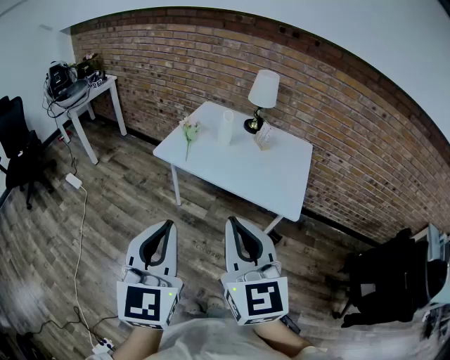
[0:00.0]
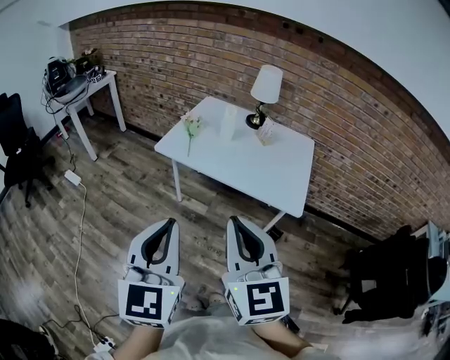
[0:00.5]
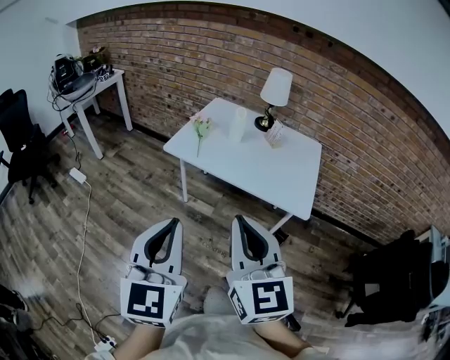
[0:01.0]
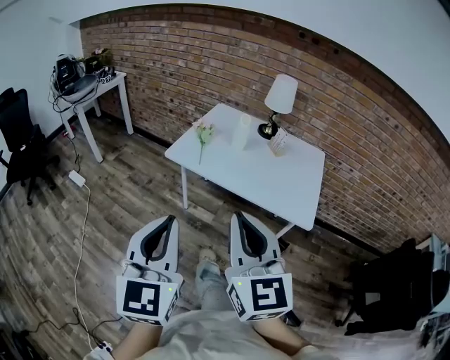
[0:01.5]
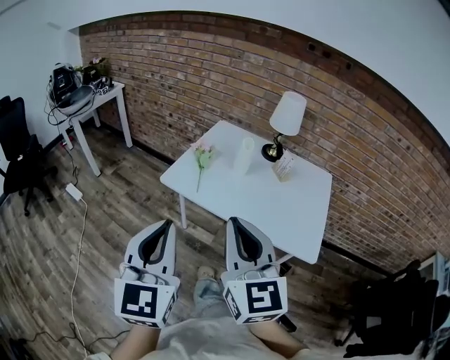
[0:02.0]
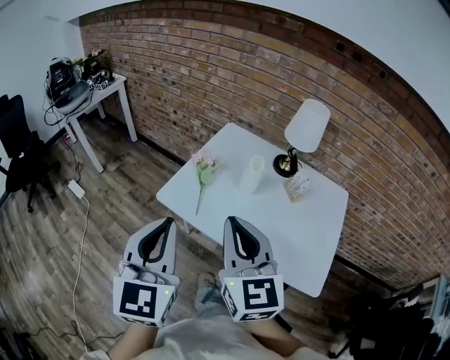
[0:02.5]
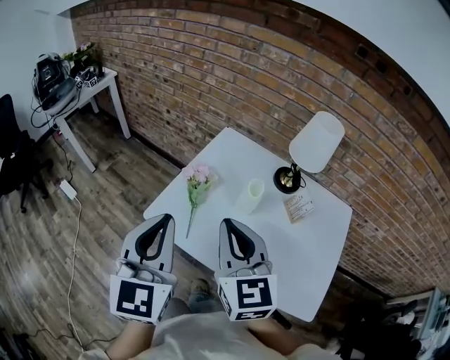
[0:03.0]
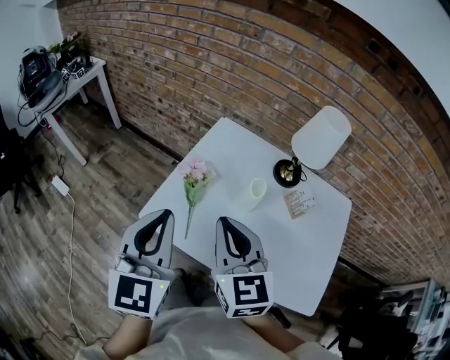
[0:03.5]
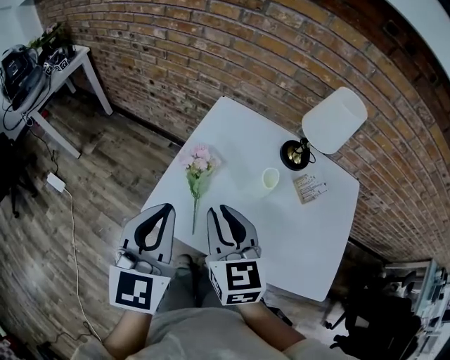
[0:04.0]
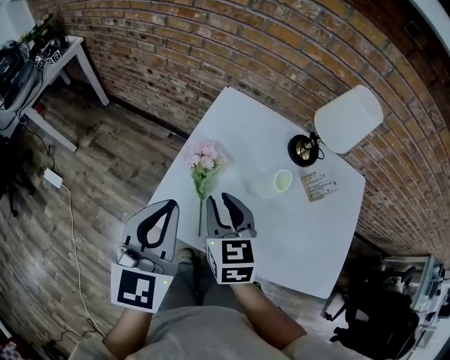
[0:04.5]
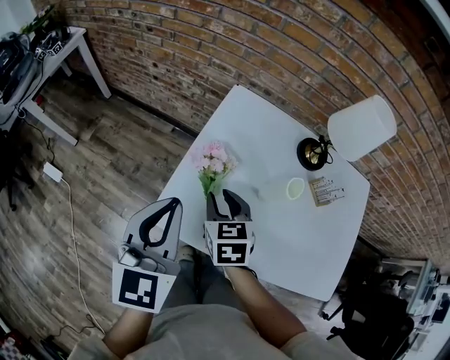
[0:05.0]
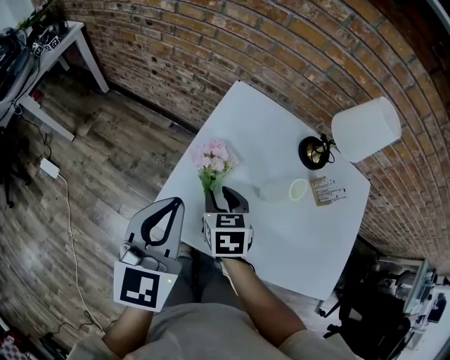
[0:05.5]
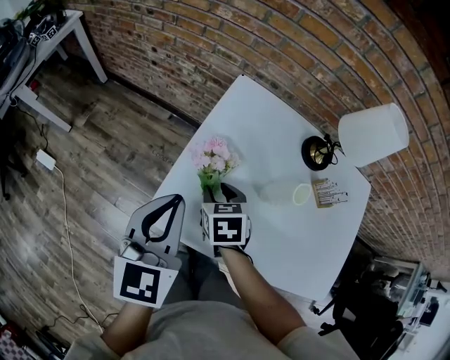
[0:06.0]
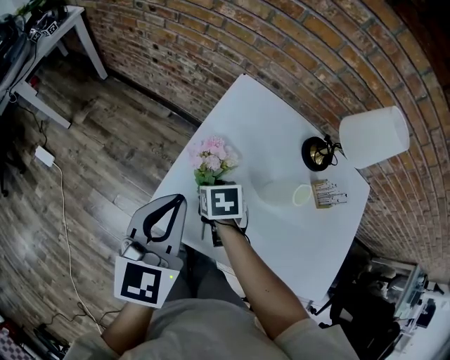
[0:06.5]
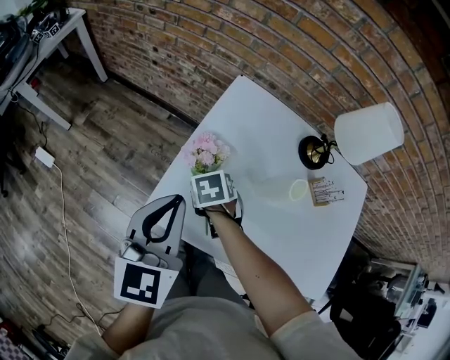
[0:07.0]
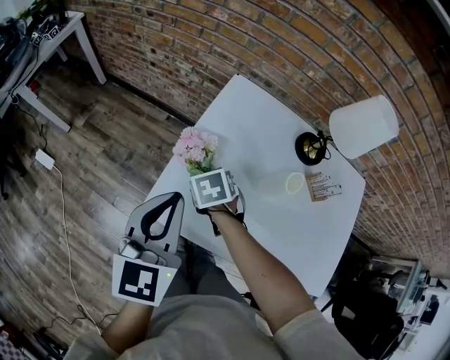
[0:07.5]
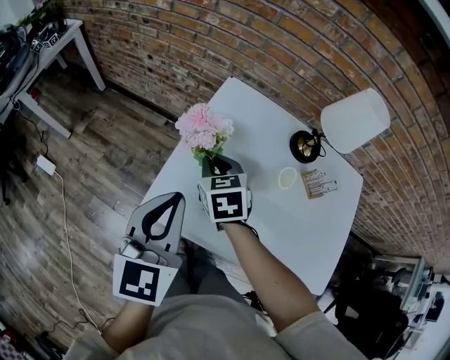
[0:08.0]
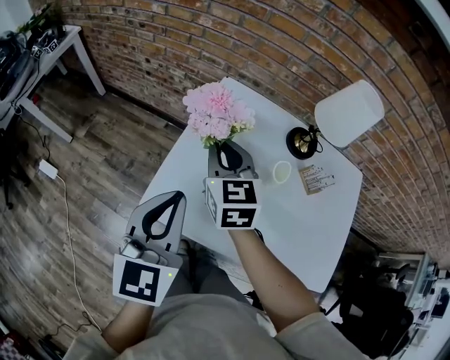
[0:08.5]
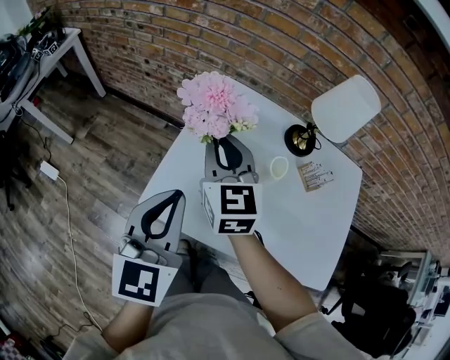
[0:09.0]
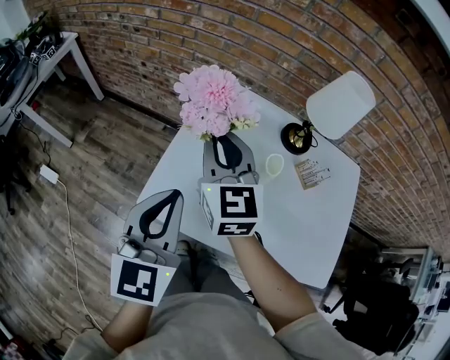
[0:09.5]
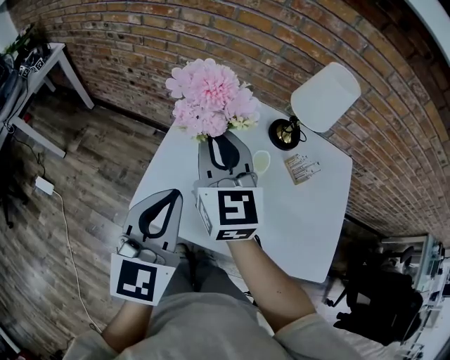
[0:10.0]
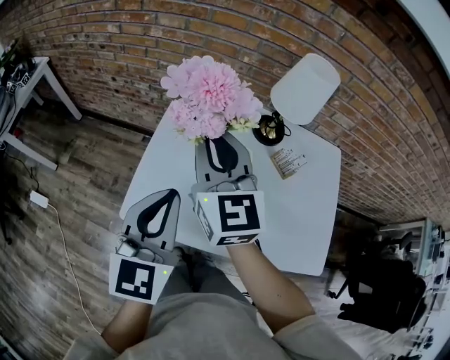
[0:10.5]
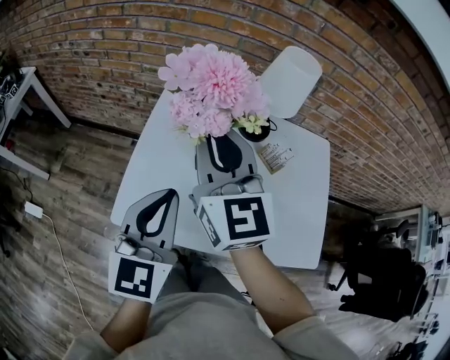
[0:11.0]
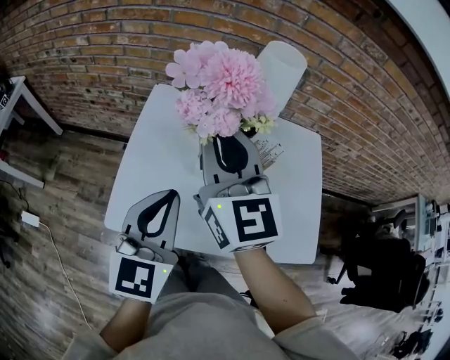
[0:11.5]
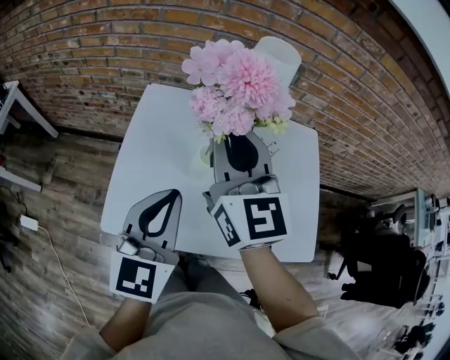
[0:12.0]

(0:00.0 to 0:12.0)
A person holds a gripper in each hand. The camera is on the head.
0:00.0 - 0:02.0: The grippers both shift forward by about 15 cm.
0:02.0 - 0:04.0: Both grippers travel together forward, approximately 35 cm. The right gripper changes its angle by approximately 20 degrees.
0:04.0 - 0:06.0: The left gripper is displaced forward and downward by some 10 cm, while the right gripper goes roughly 20 cm downward and forward, and tilts its fingers approximately 30 degrees downward.
0:06.0 - 0:08.0: The right gripper travels upward by roughly 5 cm, and closes its fingers; the left gripper ends up roughly 5 cm from where it was.
0:08.0 - 0:10.0: The right gripper goes approximately 20 cm upward, and points its fingers some 40 degrees further upward; the left gripper travels to the right by some 5 cm.
0:10.0 - 0:12.0: The left gripper heads to the right, covering about 10 cm. Meanwhile the right gripper shifts some 15 cm to the right and upward.

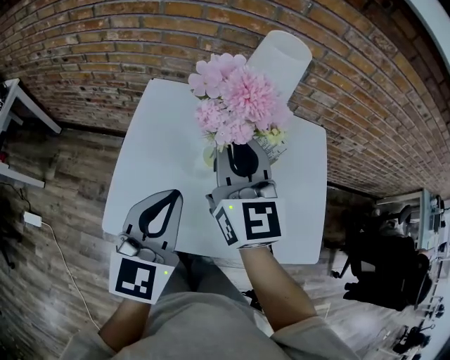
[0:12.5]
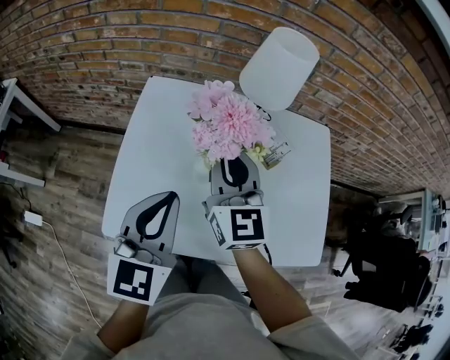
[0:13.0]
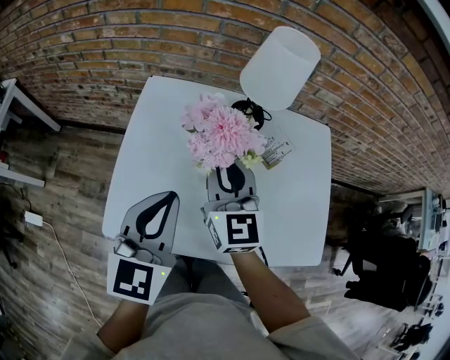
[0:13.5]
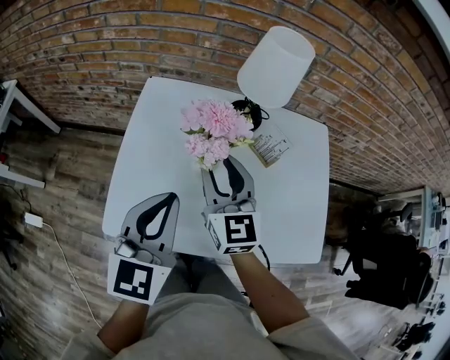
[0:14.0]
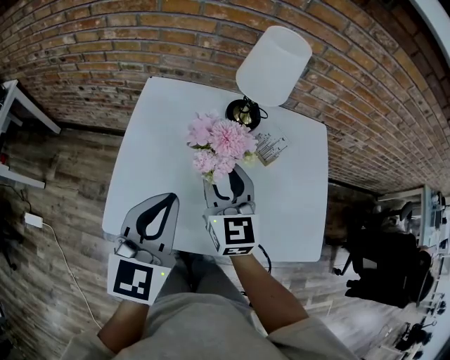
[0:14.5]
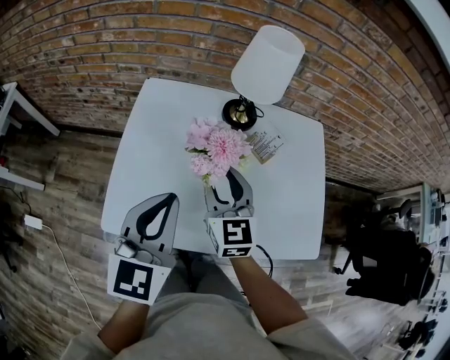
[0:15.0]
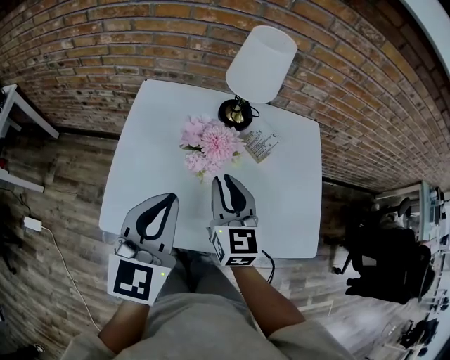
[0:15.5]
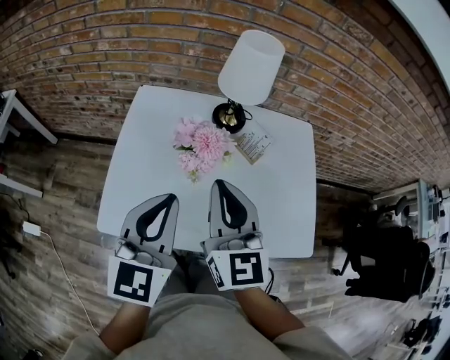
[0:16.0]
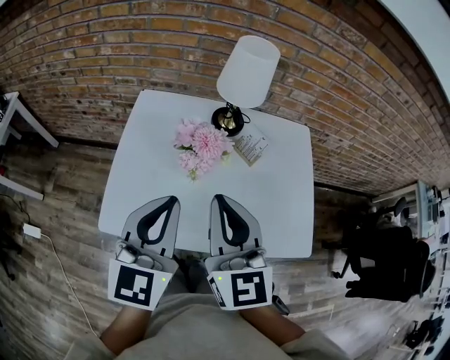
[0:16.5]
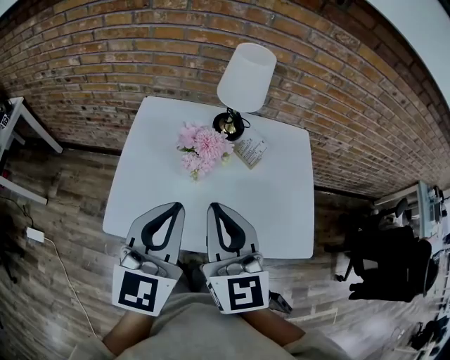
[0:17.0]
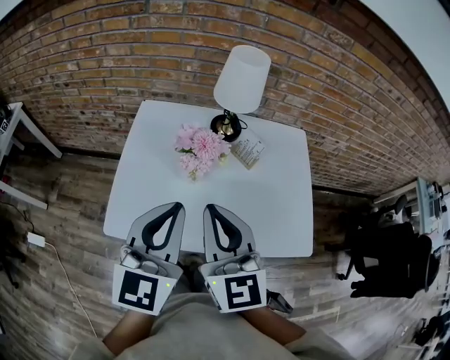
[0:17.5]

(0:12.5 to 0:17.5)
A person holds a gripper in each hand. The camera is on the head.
0:12.5 - 0:15.0: The right gripper shifts approximately 15 cm downward, and opens its fingers.
0:15.0 - 0:17.5: The left gripper goes roughly 10 cm upward and backward. Meanwhile the right gripper heads upward and backward, covering some 20 cm, and closes up.

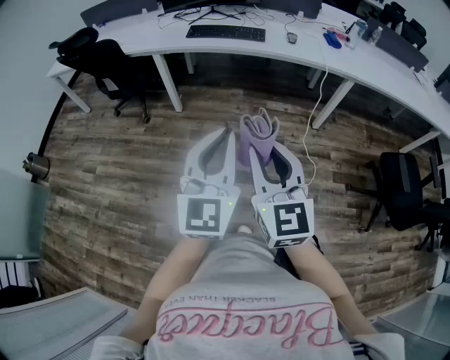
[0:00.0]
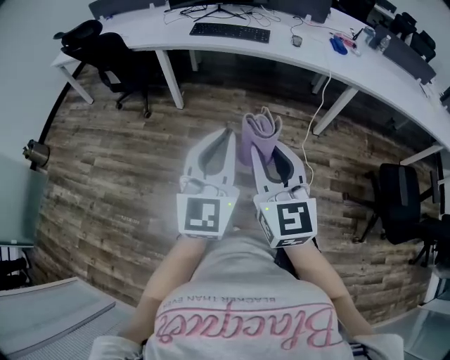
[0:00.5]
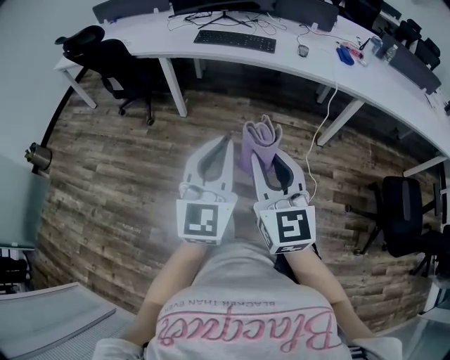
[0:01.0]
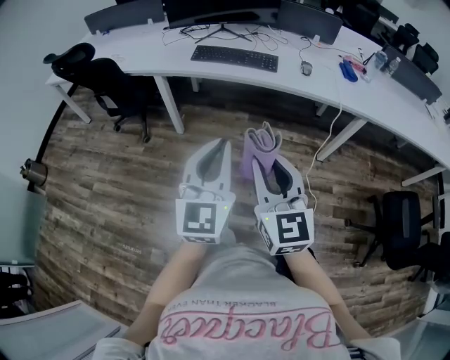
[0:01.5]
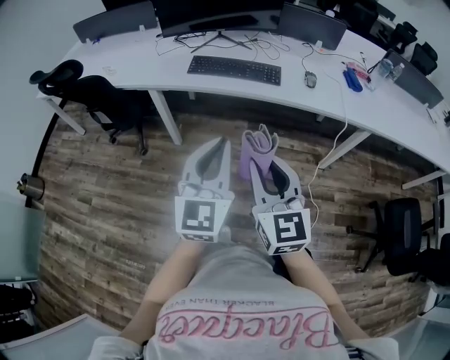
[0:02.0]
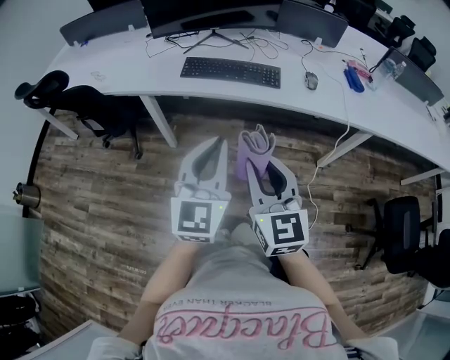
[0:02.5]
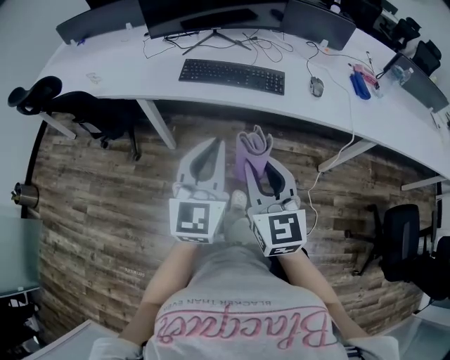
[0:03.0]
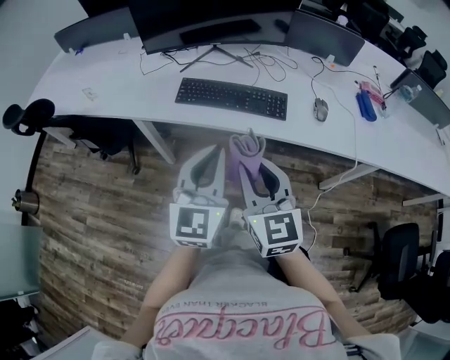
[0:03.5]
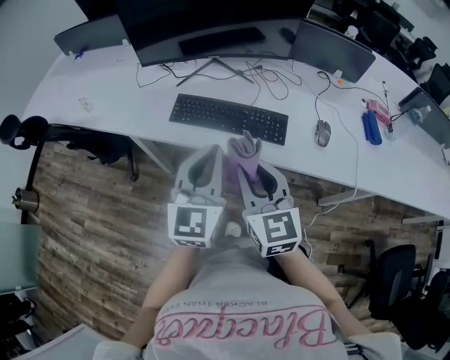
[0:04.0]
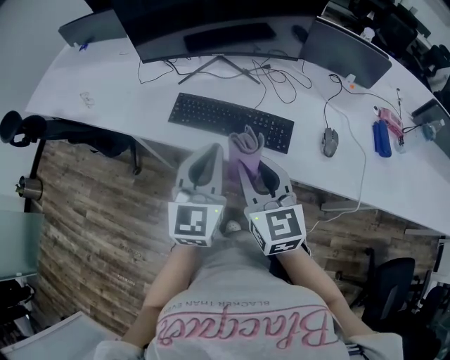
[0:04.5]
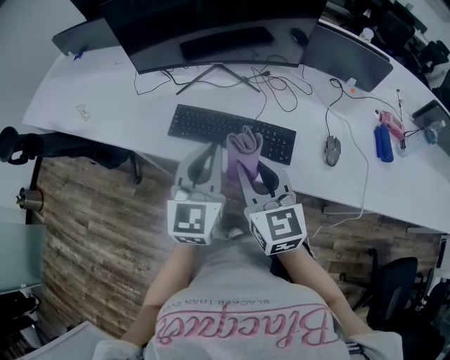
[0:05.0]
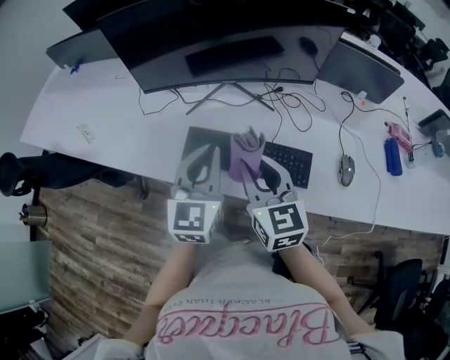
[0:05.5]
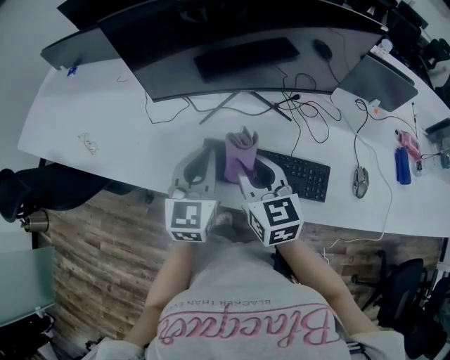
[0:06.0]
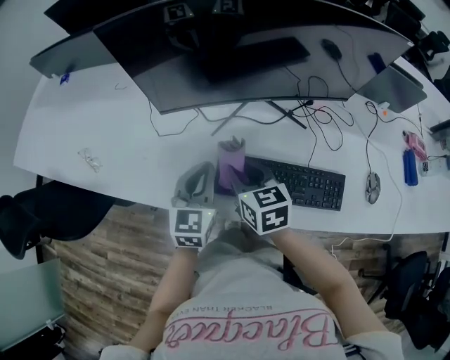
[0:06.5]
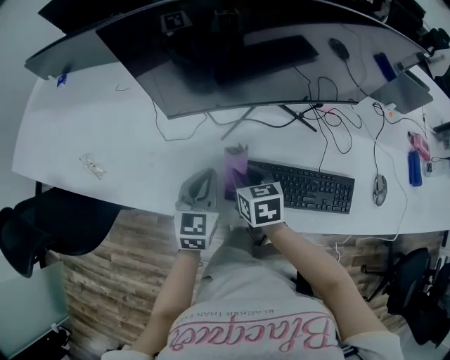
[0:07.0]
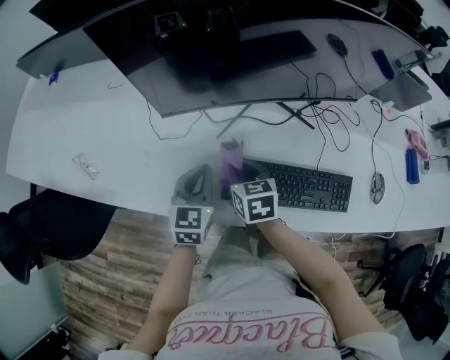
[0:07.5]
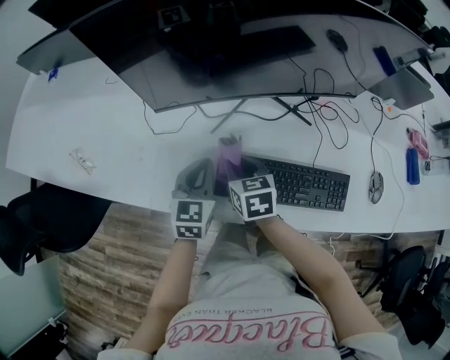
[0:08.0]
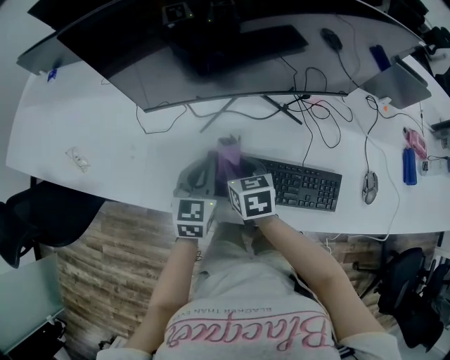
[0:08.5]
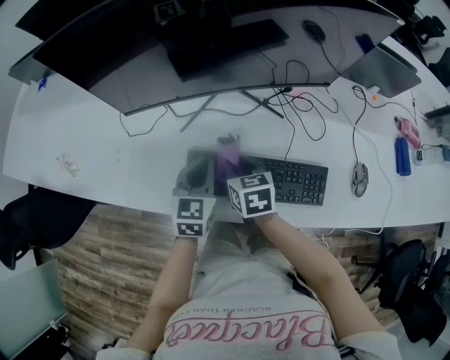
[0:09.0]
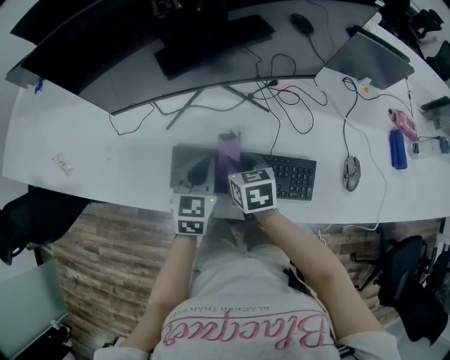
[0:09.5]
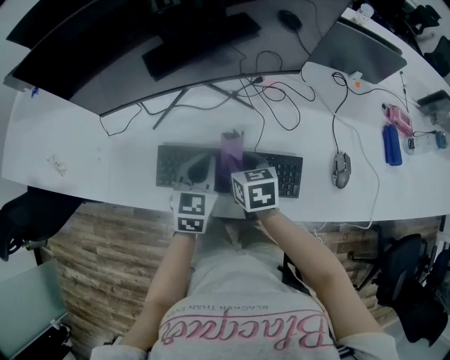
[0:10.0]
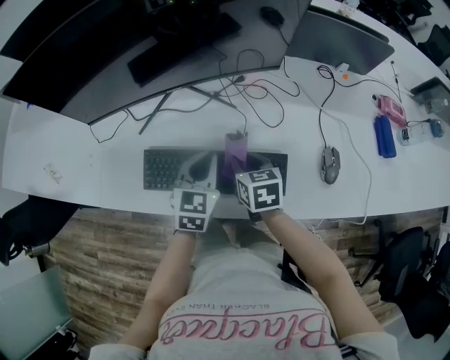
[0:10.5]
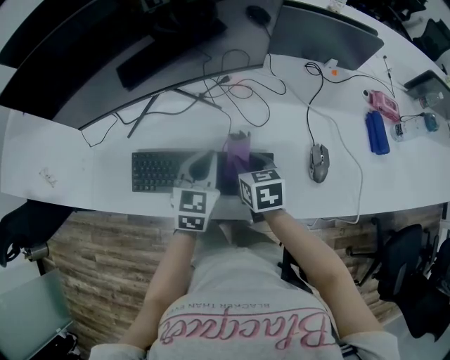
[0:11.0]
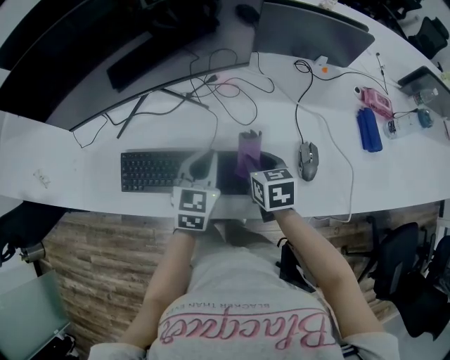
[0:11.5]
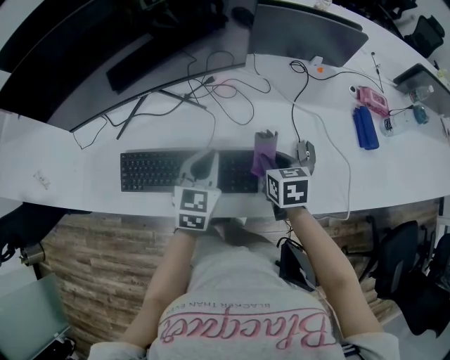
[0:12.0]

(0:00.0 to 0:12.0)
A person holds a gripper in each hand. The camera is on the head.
0:00.0 - 0:02.0: Both grippers move forward, roughly 30 cm.
0:02.0 - 0:04.0: Both grippers travel together forward, approximately 35 cm.
0:04.0 - 0:06.0: The right gripper goes about 25 cm forward; the left gripper goes approximately 30 cm forward and to the left.
0:06.0 - 0:08.0: Both grippers move downward, forward and to the left, some 20 cm. The right gripper swivels about 30 degrees.
0:08.0 - 0:10.0: The two grippers go about 20 cm to the right.
0:10.0 - 0:12.0: The left gripper is displaced to the right by some 15 cm. The right gripper goes approximately 25 cm to the right.
